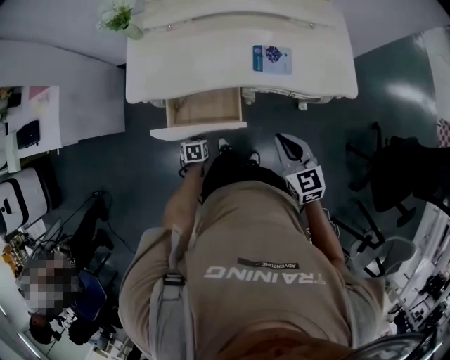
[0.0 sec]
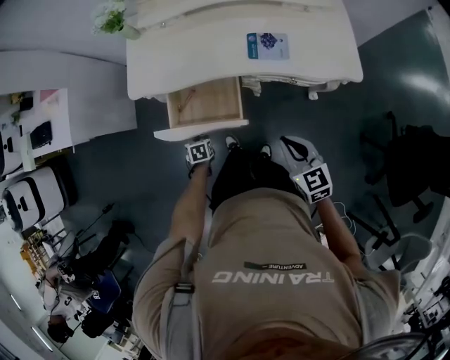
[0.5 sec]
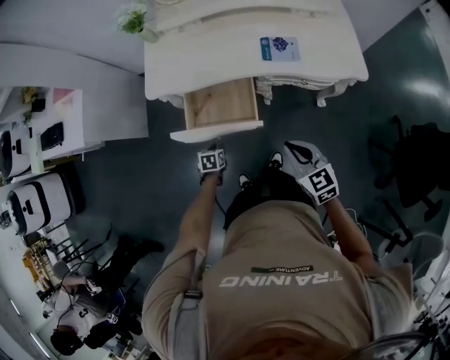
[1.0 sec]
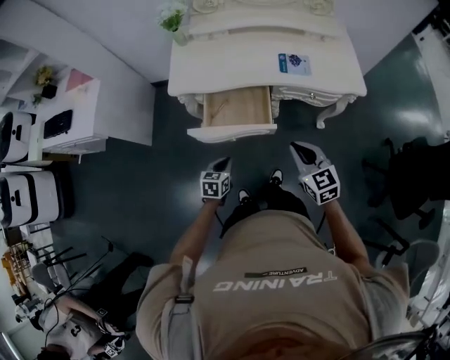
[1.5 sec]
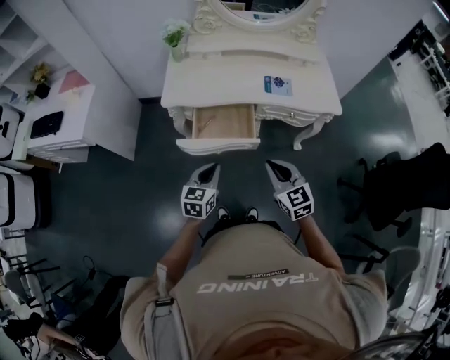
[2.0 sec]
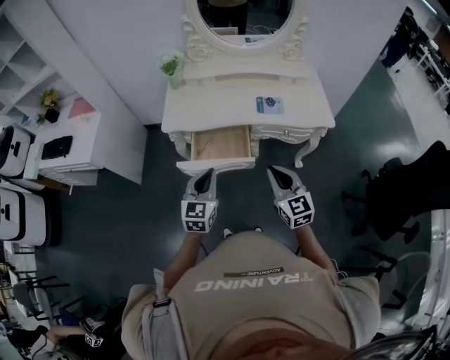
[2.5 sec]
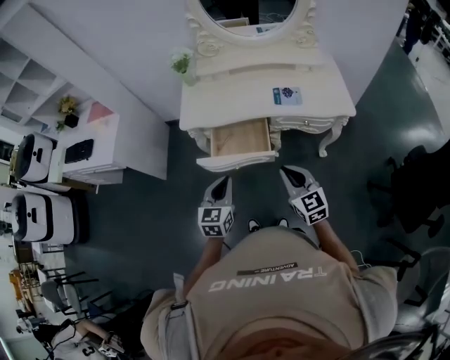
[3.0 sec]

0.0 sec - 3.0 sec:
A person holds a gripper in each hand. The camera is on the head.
0.0 sec - 1.5 sec: The right gripper travels backward and to the left by about 20 cm. The left gripper goes about 20 cm backward and upward, swivels about 30 degrees, and closes.
1.5 sec - 3.0 sec: The left gripper moves upward, some 25 cm, and swivels roughly 30 degrees; the right gripper is displaced upward by approximately 5 cm.

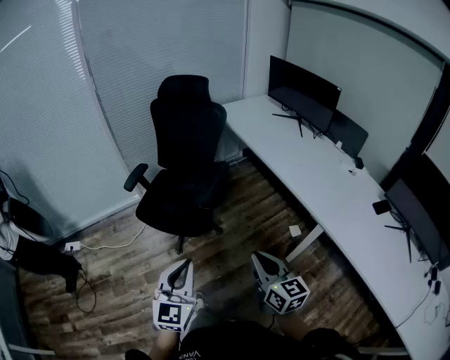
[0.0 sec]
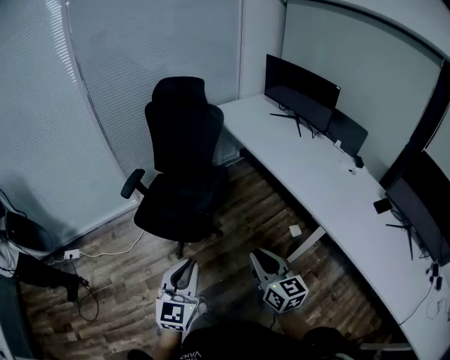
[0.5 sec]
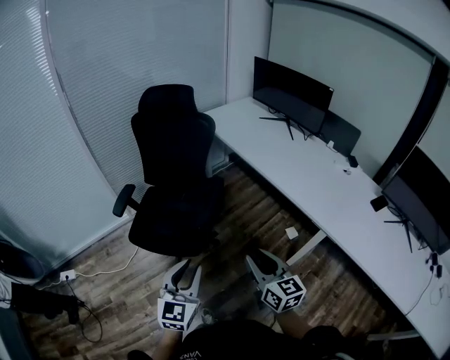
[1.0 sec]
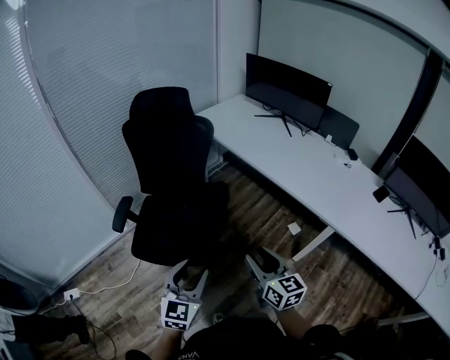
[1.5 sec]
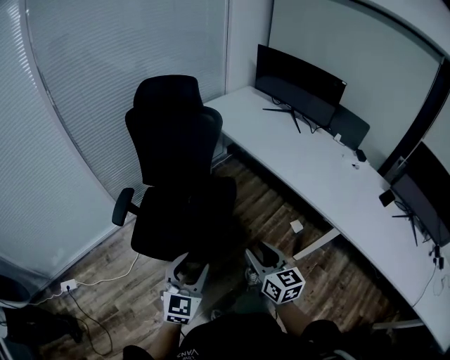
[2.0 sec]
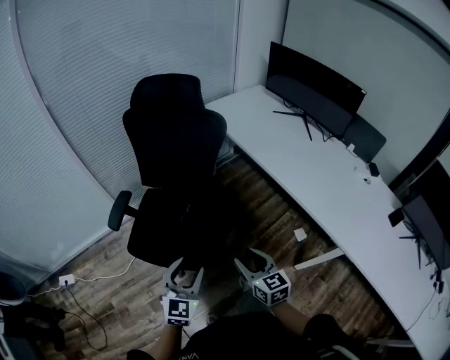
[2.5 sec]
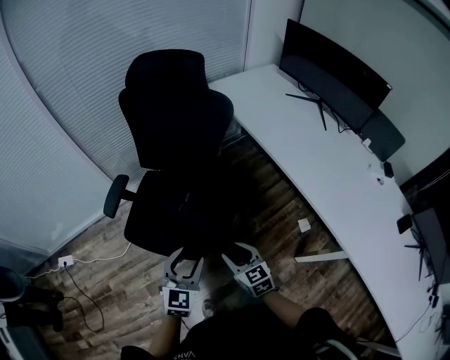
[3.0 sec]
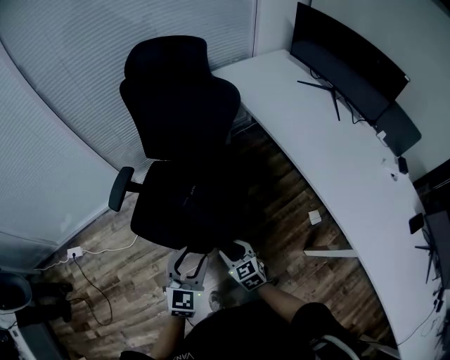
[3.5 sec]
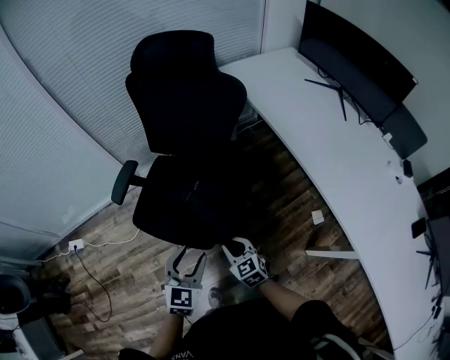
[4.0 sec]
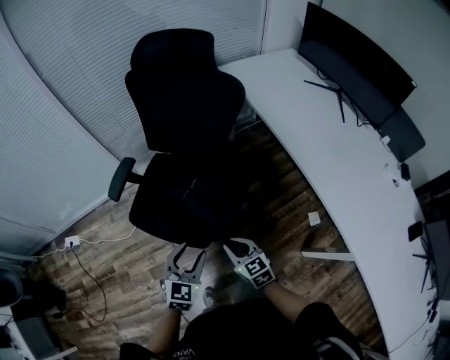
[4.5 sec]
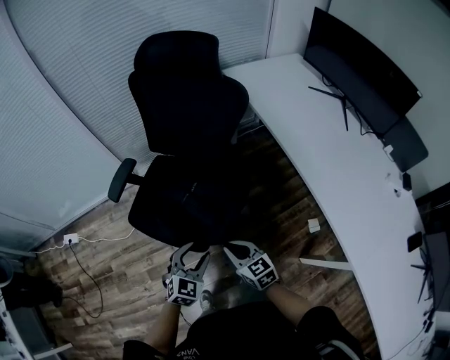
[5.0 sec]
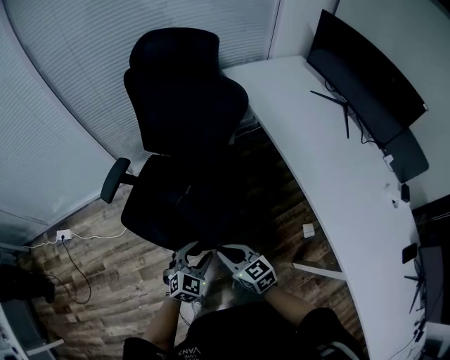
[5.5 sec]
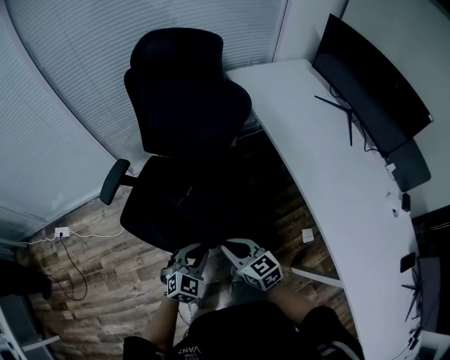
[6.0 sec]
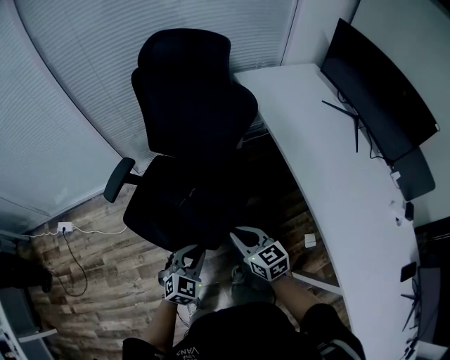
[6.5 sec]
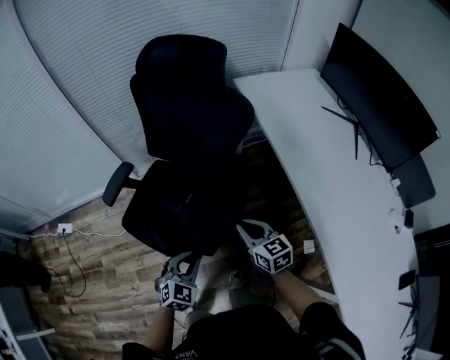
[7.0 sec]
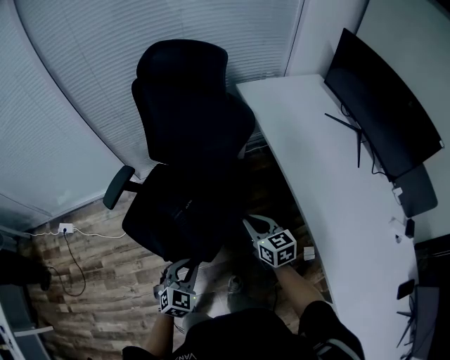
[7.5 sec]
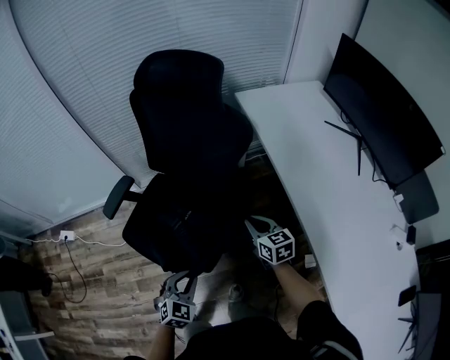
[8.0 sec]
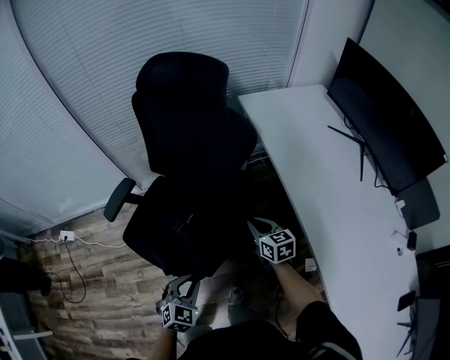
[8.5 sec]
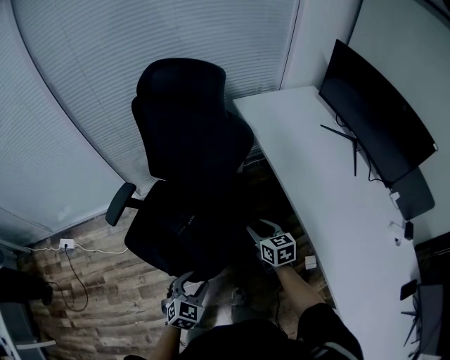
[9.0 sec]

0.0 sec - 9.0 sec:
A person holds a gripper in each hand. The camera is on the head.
0.0 sec - 2.0 sec: The grippers both shift forward and to the left by roughly 25 cm. The right gripper opens up. The left gripper opens up.
2.0 sec - 4.5 sec: The right gripper heads downward and forward, covering approximately 25 cm, and rotates some 40 degrees, while the left gripper heads forward, downward and to the right, covering some 20 cm, and changes its angle by about 20 degrees.
4.5 sec - 7.0 sec: The left gripper heads to the right, forward and downward, covering about 10 cm, and closes. The right gripper is displaced forward and to the right by about 20 cm.
7.0 sec - 9.0 sec: The left gripper opens. Meanwhile the right gripper travels forward and to the right by roughly 10 cm.

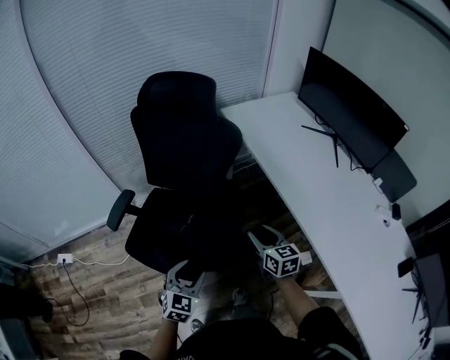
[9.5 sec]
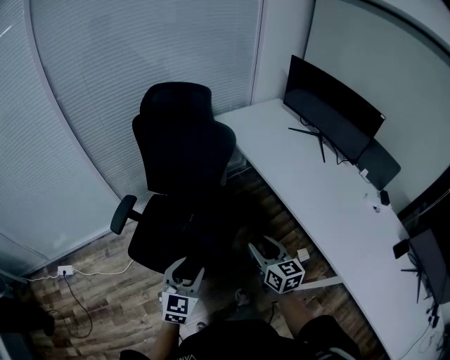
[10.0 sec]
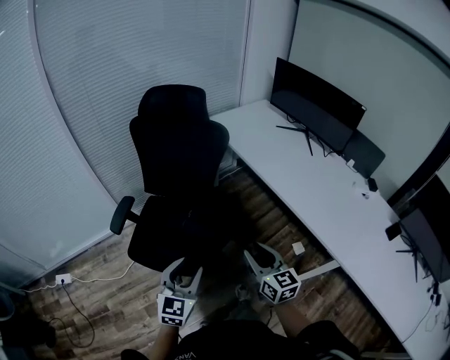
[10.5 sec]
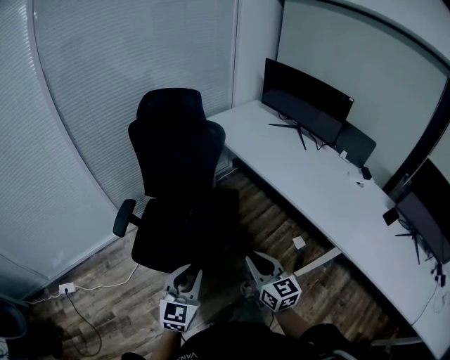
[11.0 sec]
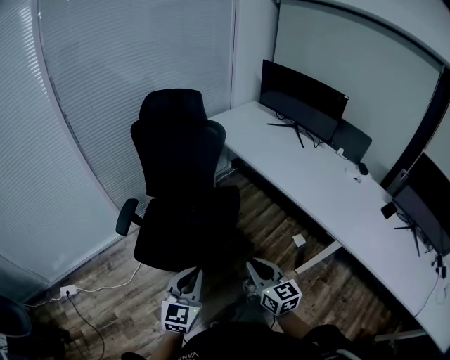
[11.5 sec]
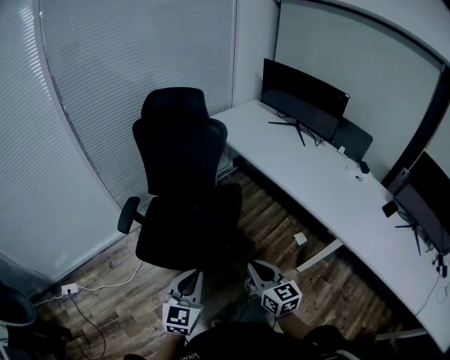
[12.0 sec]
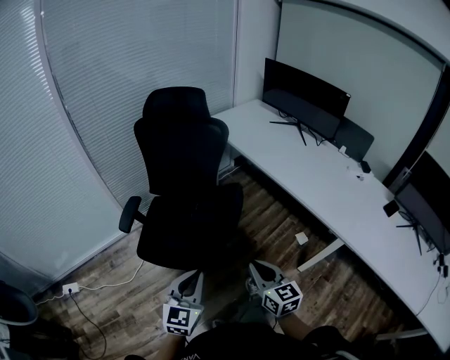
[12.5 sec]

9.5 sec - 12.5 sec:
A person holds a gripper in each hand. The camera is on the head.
9.5 sec - 11.0 sec: The right gripper goes roughly 30 cm backward. The left gripper is displaced backward, upward and to the left by approximately 20 cm, turns by some 20 degrees, and closes its fingers.
11.0 sec - 12.5 sec: Both grippers move backward, about 5 cm.

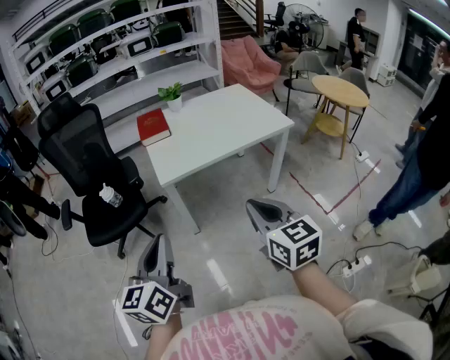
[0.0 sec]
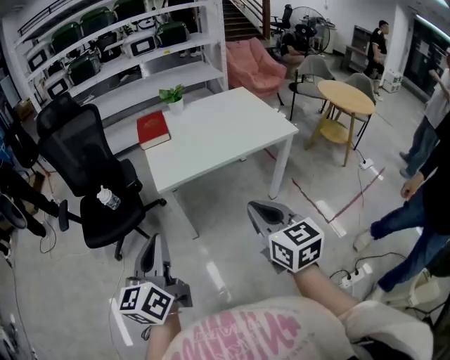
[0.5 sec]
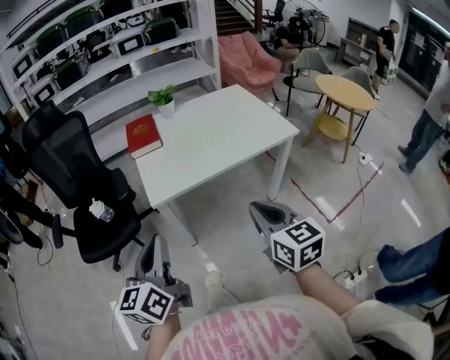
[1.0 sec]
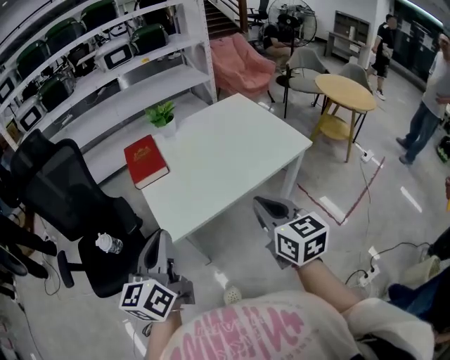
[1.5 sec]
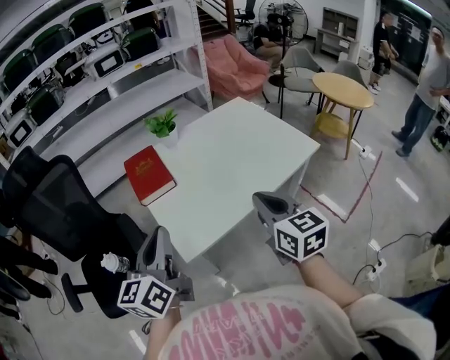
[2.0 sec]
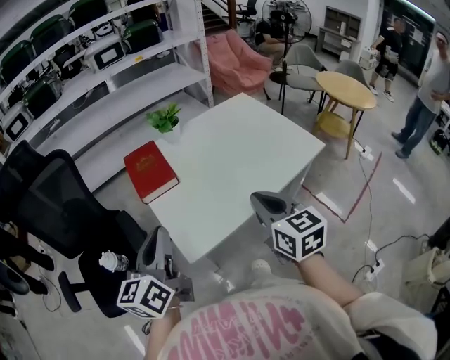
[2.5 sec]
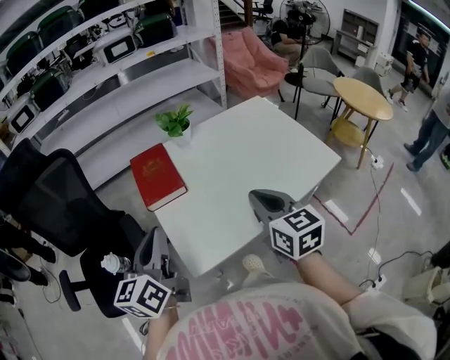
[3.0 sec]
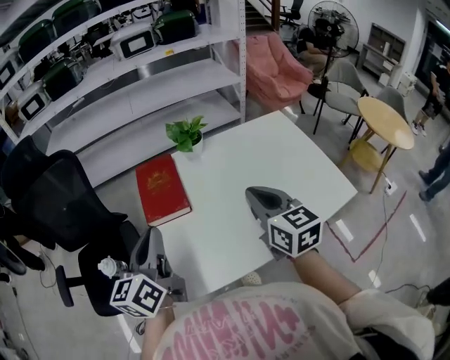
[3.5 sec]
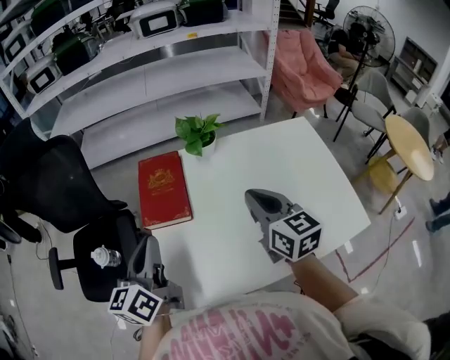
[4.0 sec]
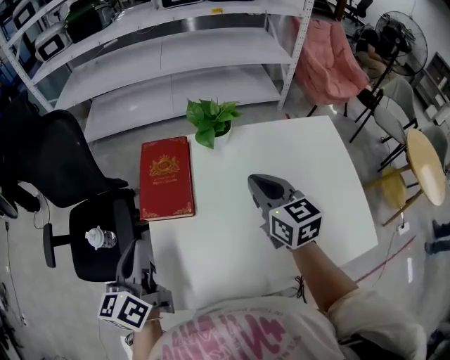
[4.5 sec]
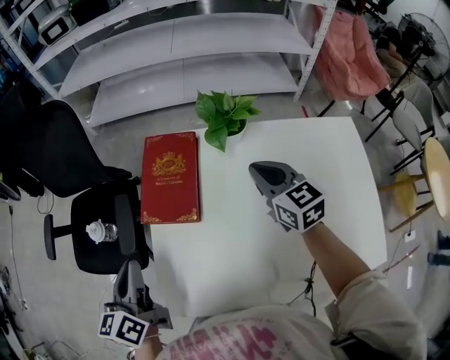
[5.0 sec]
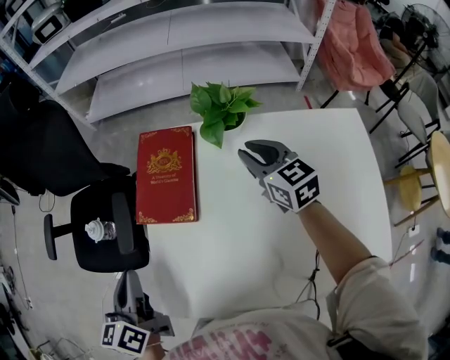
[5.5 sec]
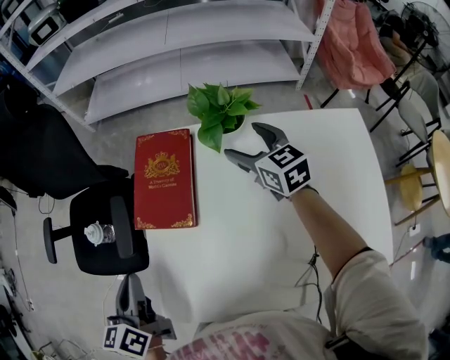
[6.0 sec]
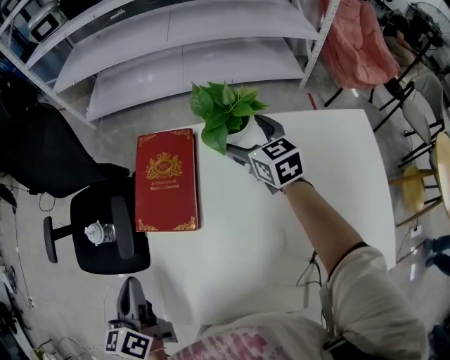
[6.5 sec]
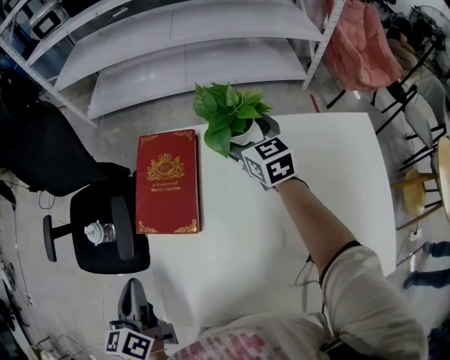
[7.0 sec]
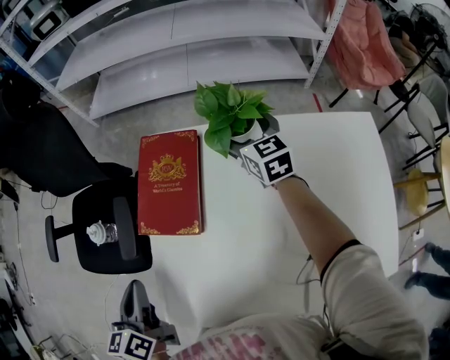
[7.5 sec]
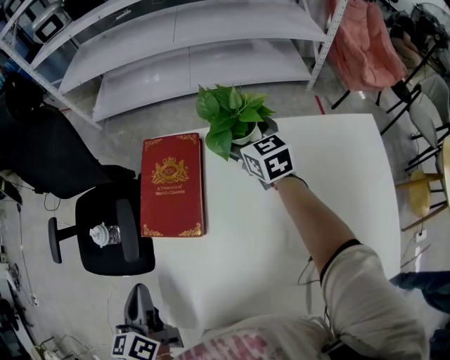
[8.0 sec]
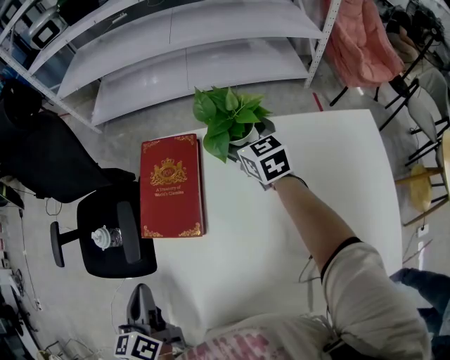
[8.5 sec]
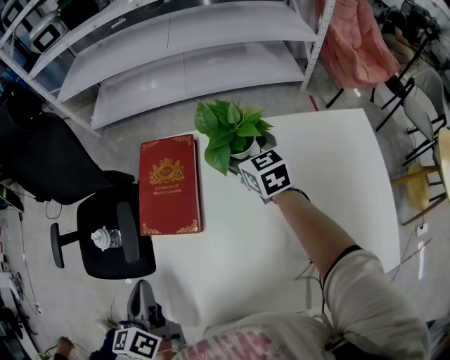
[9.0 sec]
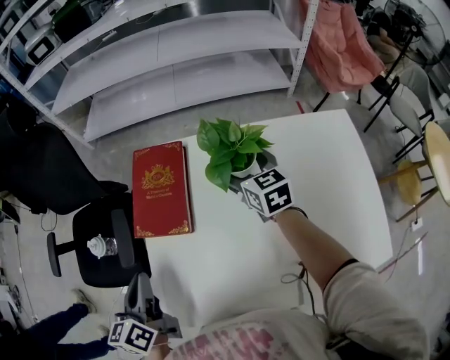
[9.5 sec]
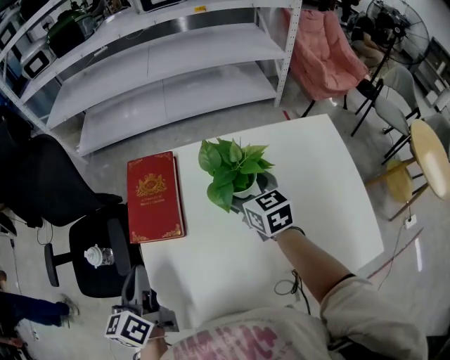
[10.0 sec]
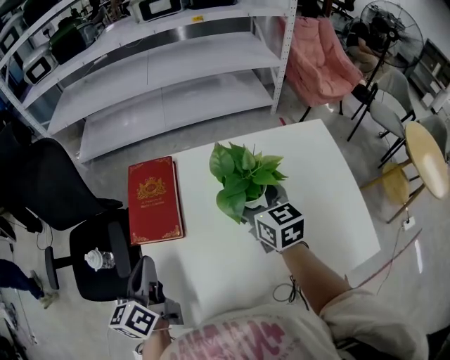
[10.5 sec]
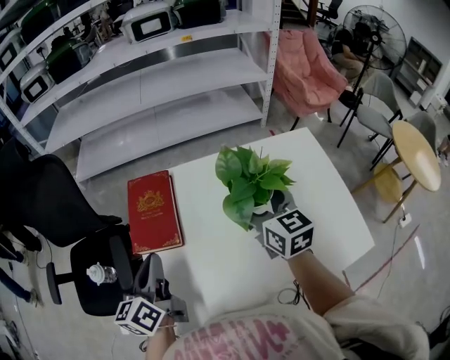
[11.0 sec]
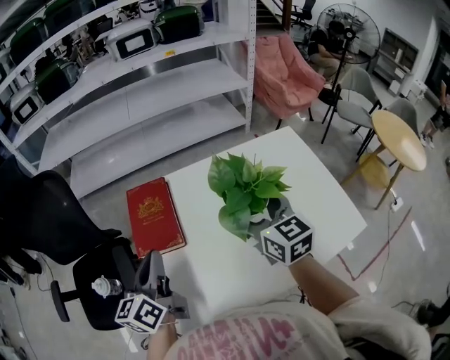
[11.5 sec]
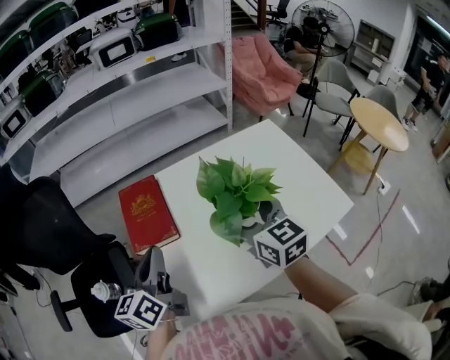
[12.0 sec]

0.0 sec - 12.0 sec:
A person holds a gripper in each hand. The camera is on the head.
0.0 sec - 2.0 sec: The grippers both shift forward by approximately 35 cm.
2.0 sec - 4.0 sec: The right gripper moves forward, about 30 cm, and turns by roughly 20 degrees. The left gripper goes roughly 20 cm forward, and turns by approximately 20 degrees.
4.0 sec - 6.0 sec: The right gripper moves forward and downward, some 25 cm, turns by approximately 20 degrees, and opens up, while the left gripper travels downward and to the left by roughly 10 cm, and changes its angle by about 30 degrees.
6.0 sec - 8.0 sec: The right gripper is displaced forward by about 10 cm.
8.0 sec - 10.0 sec: The left gripper is displaced to the right by approximately 5 cm; the right gripper is displaced backward by approximately 15 cm.
10.0 sec - 12.0 sec: The right gripper heads backward and upward, covering about 20 cm; the left gripper moves upward and to the right, some 10 cm, and turns by about 30 degrees.
